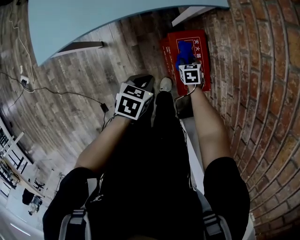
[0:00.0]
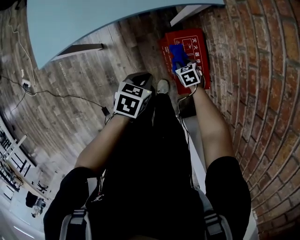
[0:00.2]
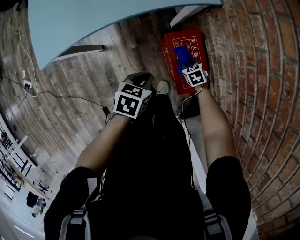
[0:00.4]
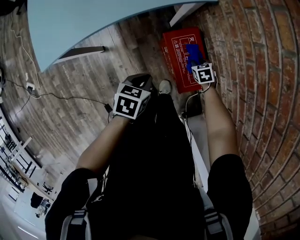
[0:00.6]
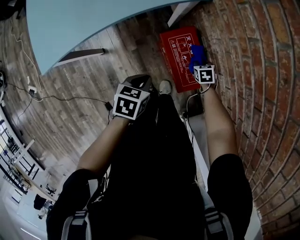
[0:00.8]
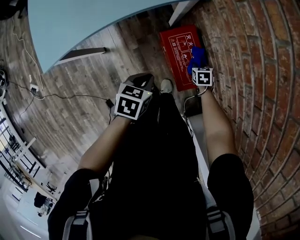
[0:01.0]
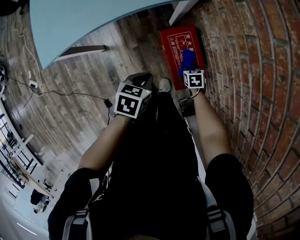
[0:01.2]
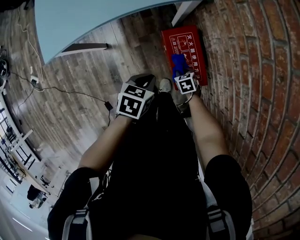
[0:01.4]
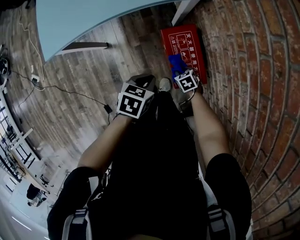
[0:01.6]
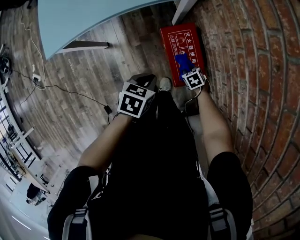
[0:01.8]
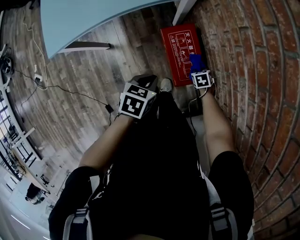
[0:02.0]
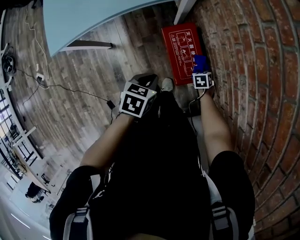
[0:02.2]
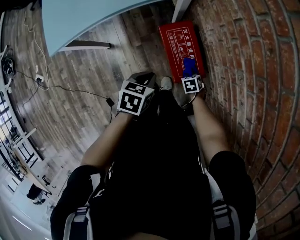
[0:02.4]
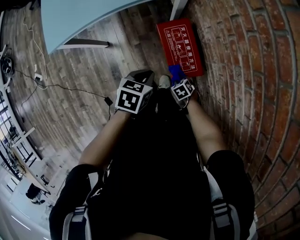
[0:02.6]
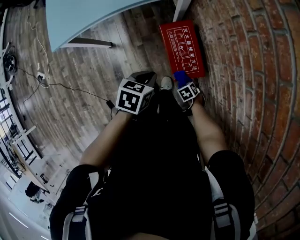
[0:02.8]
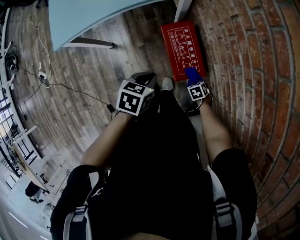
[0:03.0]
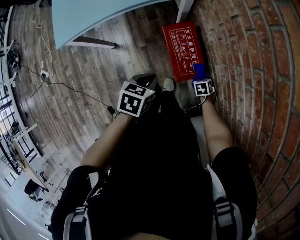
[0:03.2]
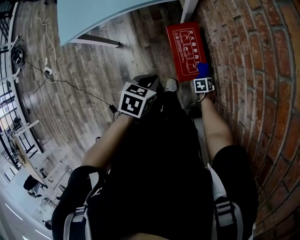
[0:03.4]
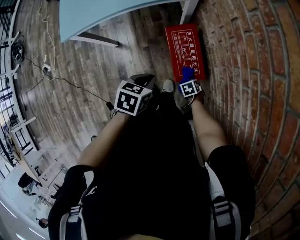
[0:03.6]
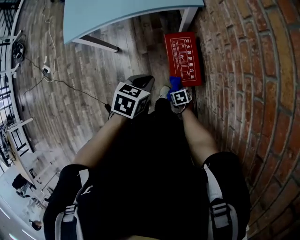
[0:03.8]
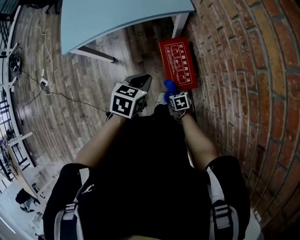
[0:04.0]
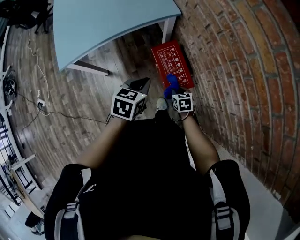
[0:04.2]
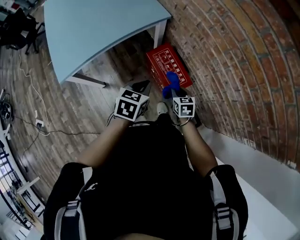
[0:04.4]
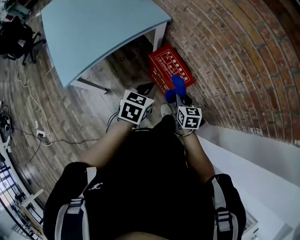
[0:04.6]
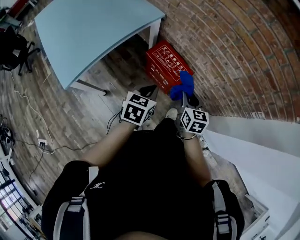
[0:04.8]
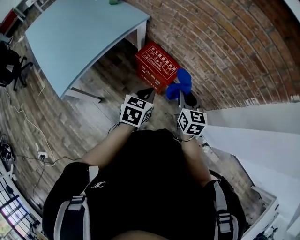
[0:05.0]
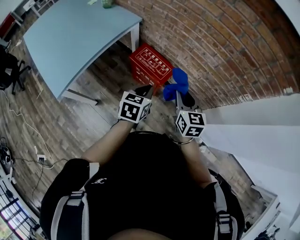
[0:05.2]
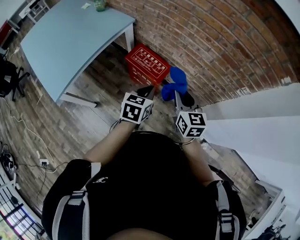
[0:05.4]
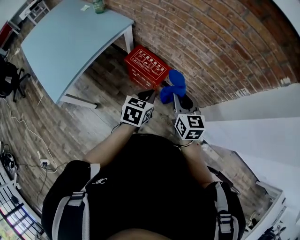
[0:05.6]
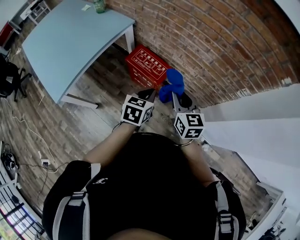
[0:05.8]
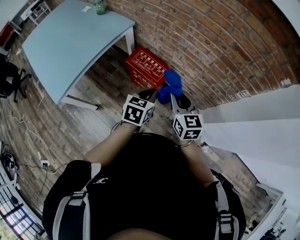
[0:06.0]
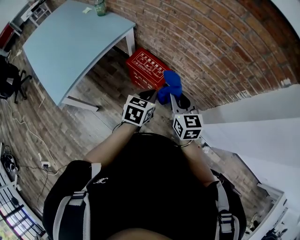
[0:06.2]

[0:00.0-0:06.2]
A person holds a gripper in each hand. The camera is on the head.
0:00.0 to 0:01.6: The left gripper is displaced to the right by some 5 cm. The right gripper heads backward, covering about 10 cm, and reaches roughly 10 cm to the right, then returns.
0:01.6 to 0:03.2: The right gripper shifts by about 15 cm, and rotates roughly 20 degrees; the left gripper changes place by roughly 10 cm.
0:03.2 to 0:04.6: The right gripper goes roughly 30 cm upward, and tilts its fingers approximately 40 degrees upward. Meanwhile the left gripper goes some 10 cm upward, and swivels about 30 degrees.
0:04.6 to 0:06.2: The left gripper is displaced to the right and backward by some 15 cm; the right gripper shifts about 20 cm upward, backward and to the right, and rotates some 20 degrees.

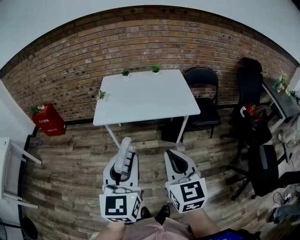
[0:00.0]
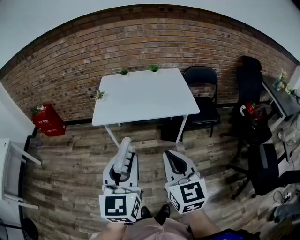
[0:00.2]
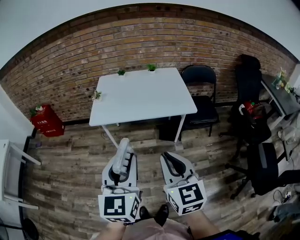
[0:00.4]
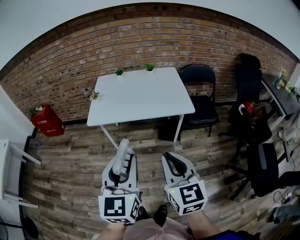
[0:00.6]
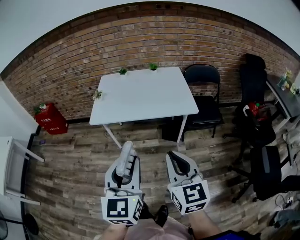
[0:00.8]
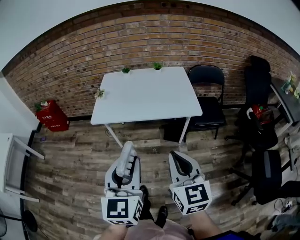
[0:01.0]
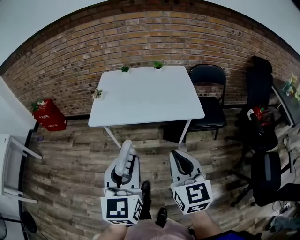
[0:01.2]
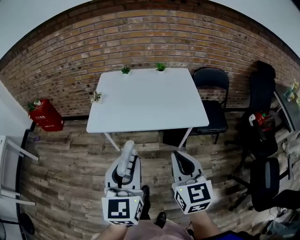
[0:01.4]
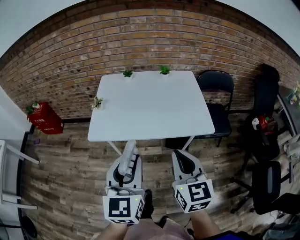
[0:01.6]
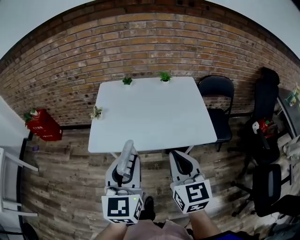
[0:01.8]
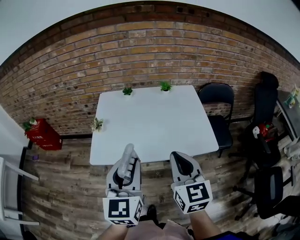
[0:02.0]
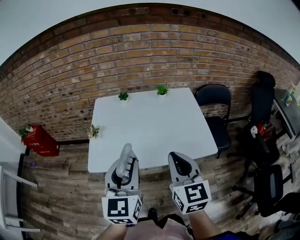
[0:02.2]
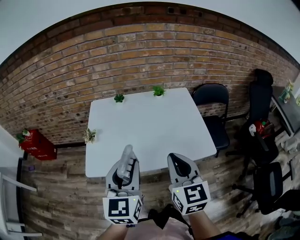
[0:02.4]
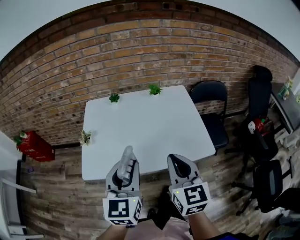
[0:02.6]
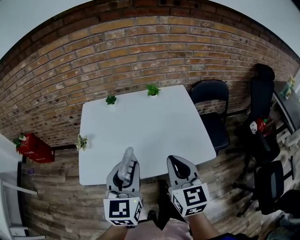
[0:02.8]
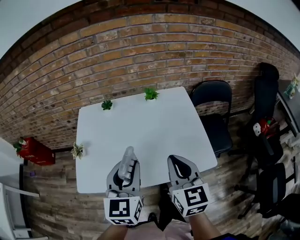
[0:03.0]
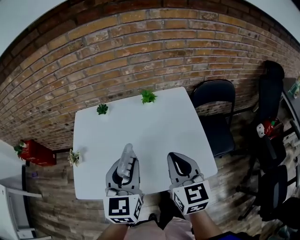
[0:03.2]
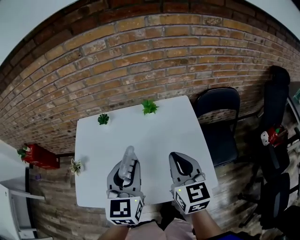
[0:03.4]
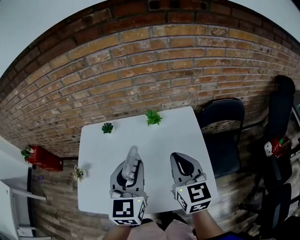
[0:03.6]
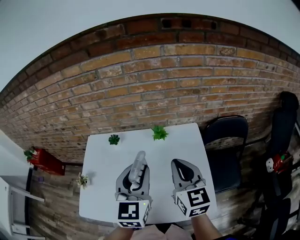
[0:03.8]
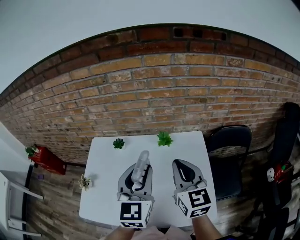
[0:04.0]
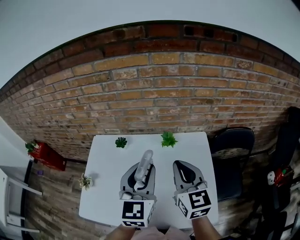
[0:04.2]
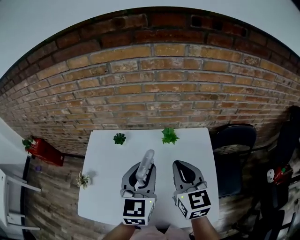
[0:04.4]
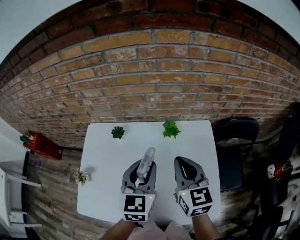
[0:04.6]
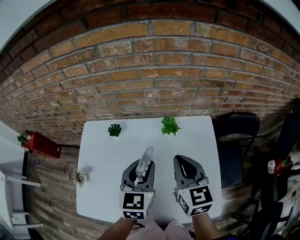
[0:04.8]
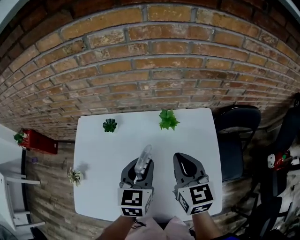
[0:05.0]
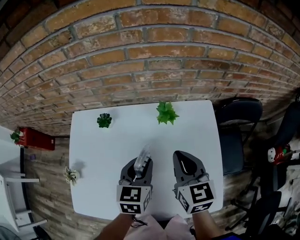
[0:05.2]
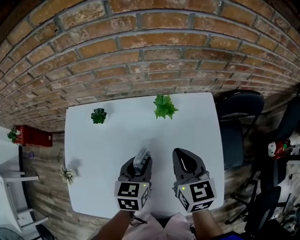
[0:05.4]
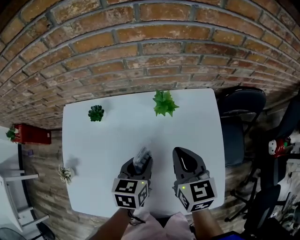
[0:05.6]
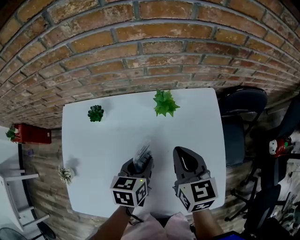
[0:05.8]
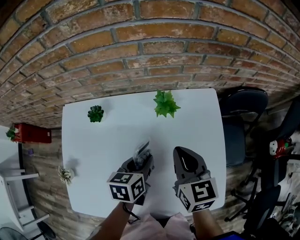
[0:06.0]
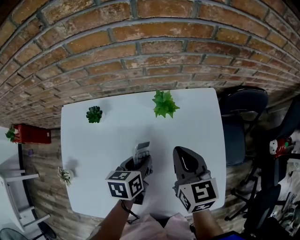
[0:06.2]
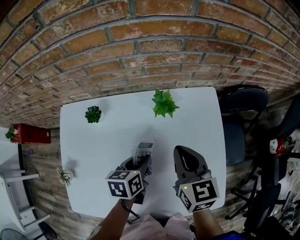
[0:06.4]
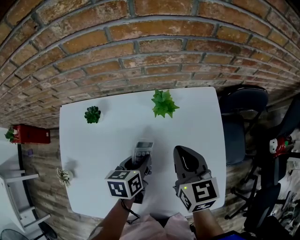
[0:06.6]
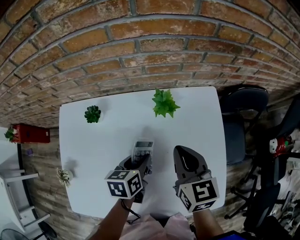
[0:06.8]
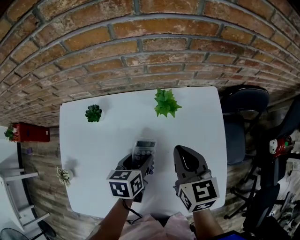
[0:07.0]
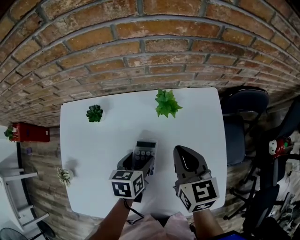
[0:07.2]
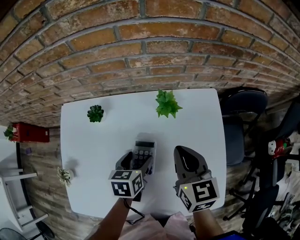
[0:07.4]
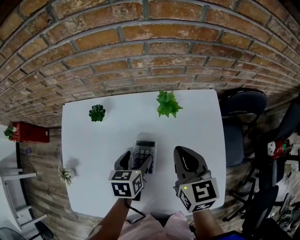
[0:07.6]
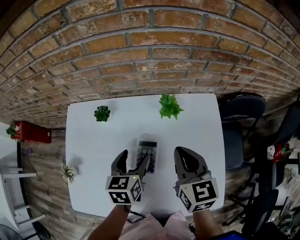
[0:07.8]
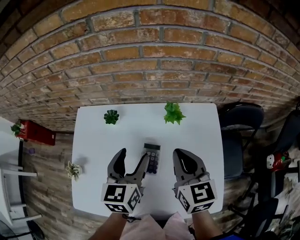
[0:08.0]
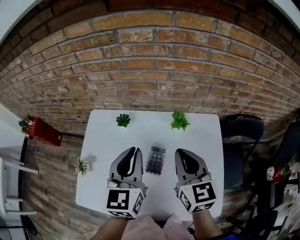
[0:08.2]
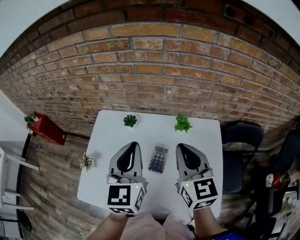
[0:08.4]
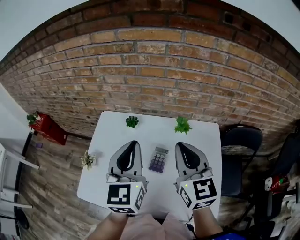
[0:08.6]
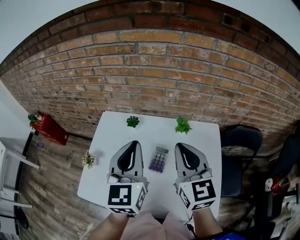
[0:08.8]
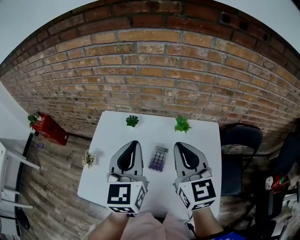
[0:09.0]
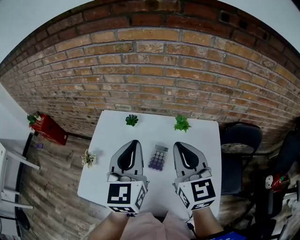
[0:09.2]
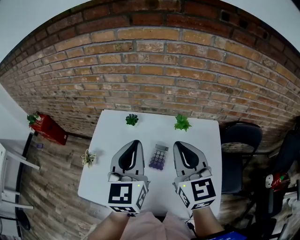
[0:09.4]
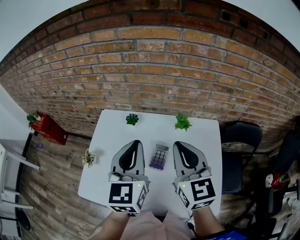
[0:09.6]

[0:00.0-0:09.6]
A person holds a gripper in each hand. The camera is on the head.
0:00.0 to 0:01.6: Both grippers move forward, approximately 20 cm.
0:01.6 to 0:03.2: The two grippers go approximately 30 cm forward.
0:03.2 to 0:04.8: Both grippers travel together forward, roughly 20 cm.
0:04.8 to 0:06.4: The left gripper travels downward by approximately 20 cm, and swivels some 40 degrees, while the right gripper heads downward, covering approximately 10 cm.
0:06.4 to 0:08.0: The left gripper moves upward and to the left, approximately 15 cm, swivels about 30 degrees, and opens up. Meanwhile the right gripper heads upward, covering about 5 cm.
0:08.0 to 0:09.6: The right gripper moves upward and to the left, about 15 cm, and rotates approximately 20 degrees. Meanwhile the left gripper shifts roughly 15 cm upward, swivels roughly 20 degrees, and closes up.

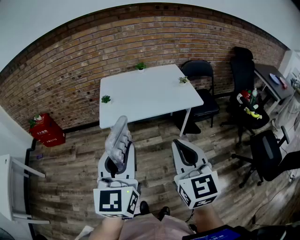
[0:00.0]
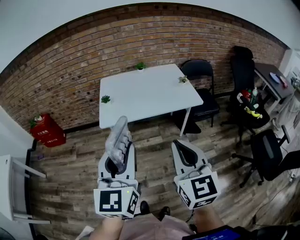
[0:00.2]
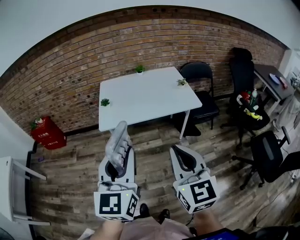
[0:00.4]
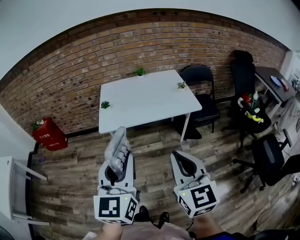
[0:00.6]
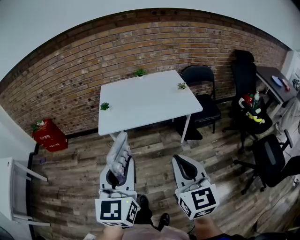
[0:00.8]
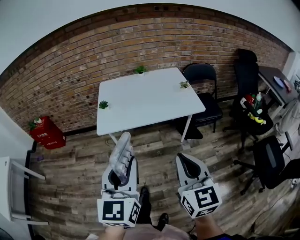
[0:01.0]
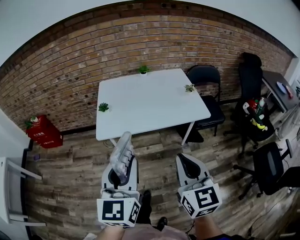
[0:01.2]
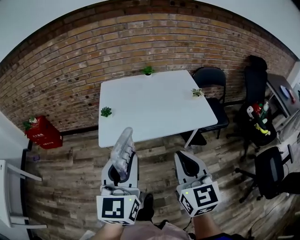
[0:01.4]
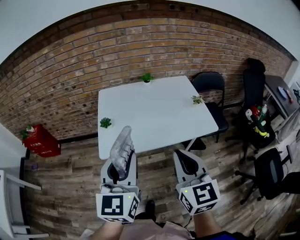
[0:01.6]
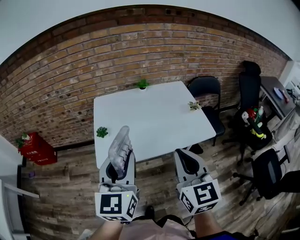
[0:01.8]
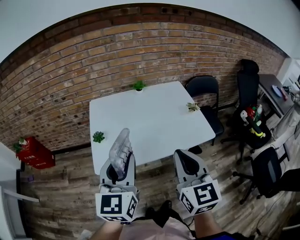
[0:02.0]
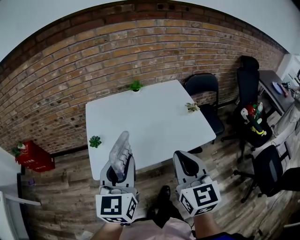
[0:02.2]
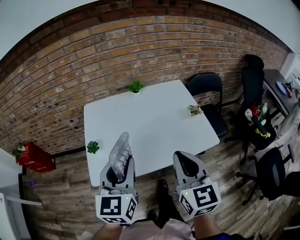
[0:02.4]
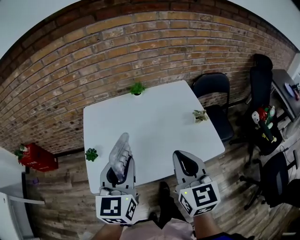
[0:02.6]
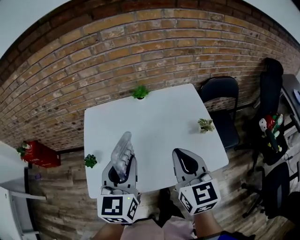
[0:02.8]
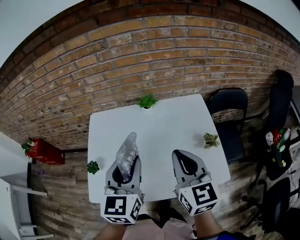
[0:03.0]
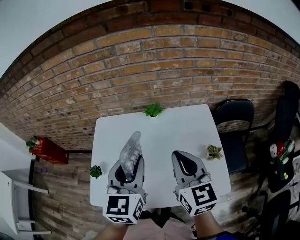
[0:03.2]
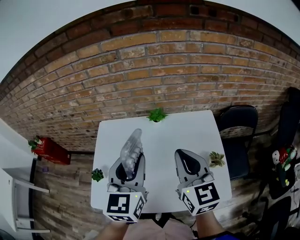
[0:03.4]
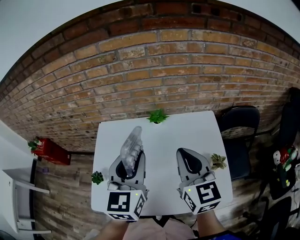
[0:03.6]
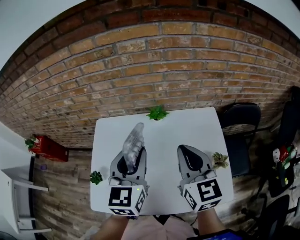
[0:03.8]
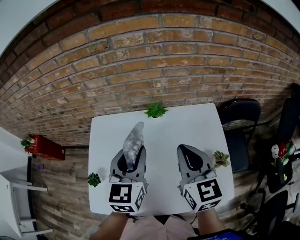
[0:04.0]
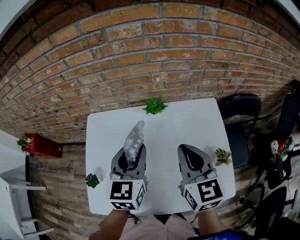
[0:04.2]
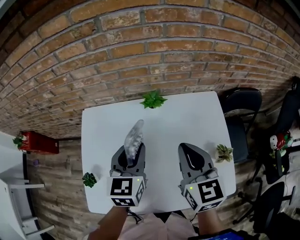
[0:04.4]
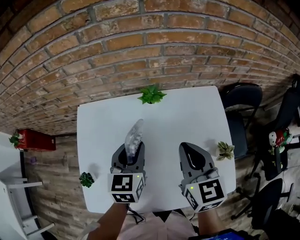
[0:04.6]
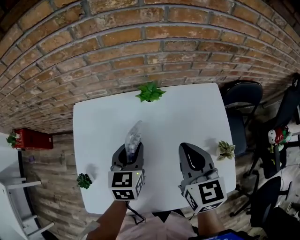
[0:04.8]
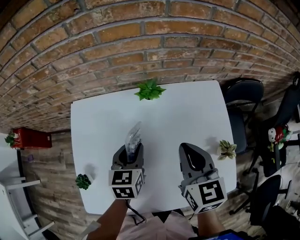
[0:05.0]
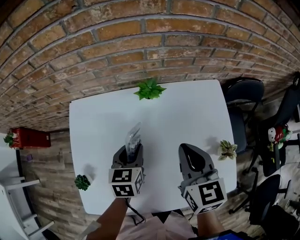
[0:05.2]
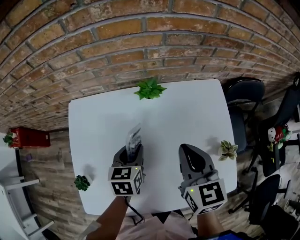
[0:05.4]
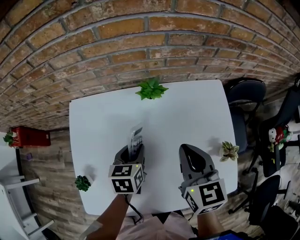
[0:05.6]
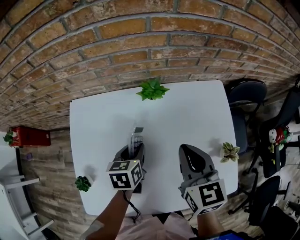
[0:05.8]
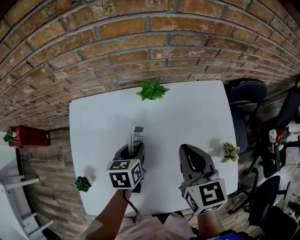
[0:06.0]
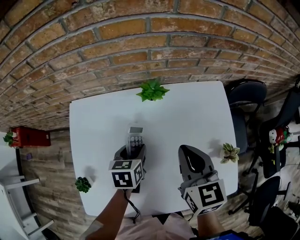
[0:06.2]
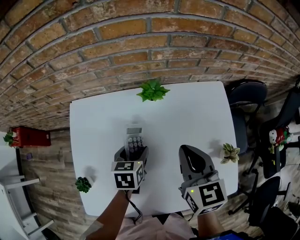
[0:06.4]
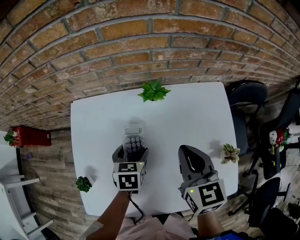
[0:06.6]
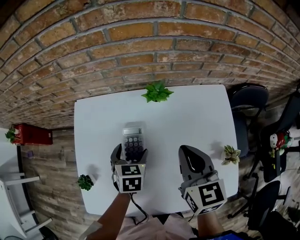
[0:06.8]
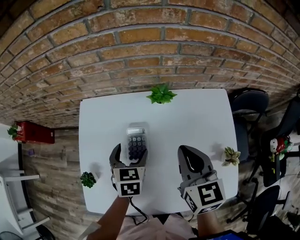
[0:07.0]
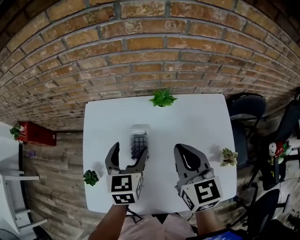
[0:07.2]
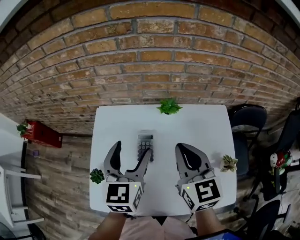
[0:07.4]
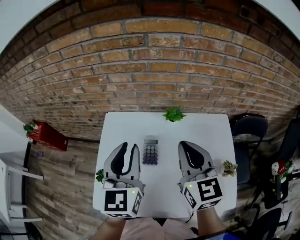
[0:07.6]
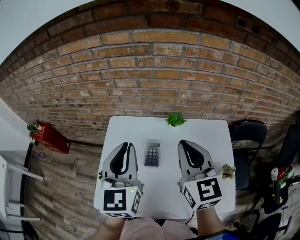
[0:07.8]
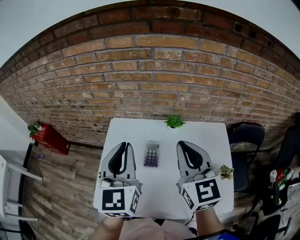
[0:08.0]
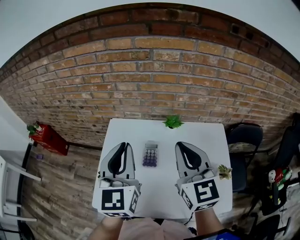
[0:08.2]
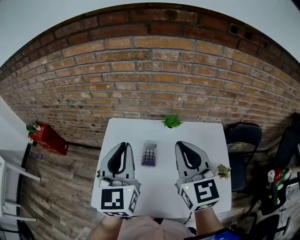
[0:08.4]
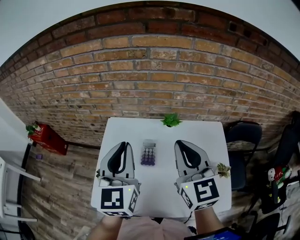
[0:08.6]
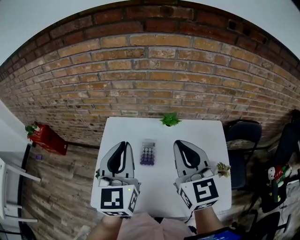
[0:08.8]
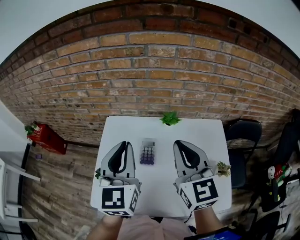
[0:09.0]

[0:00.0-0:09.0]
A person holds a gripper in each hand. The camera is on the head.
0:00.0 to 0:01.6: The grippers both shift forward by some 20 cm.
0:01.6 to 0:03.0: The grippers both shift forward by some 30 cm.
0:03.0 to 0:04.4: The right gripper heads forward, covering roughly 15 cm. Meanwhile the left gripper shifts some 20 cm forward and downward.
0:04.4 to 0:06.0: The right gripper shifts roughly 5 cm downward. The left gripper is displaced downward by some 15 cm, and changes its angle by about 30 degrees.
0:06.0 to 0:07.6: The right gripper heads upward and to the left, covering about 15 cm, and changes its angle by about 20 degrees. The left gripper heads upward, covering approximately 30 cm, tilts its fingers about 40 degrees upward, and opens, then closes once more.
0:07.6 to 0:09.0: The right gripper ends up roughly 5 cm from where it was.
